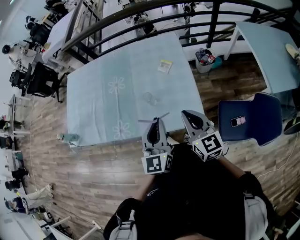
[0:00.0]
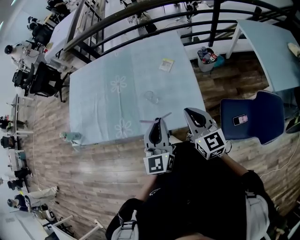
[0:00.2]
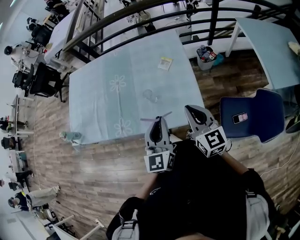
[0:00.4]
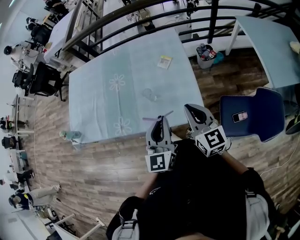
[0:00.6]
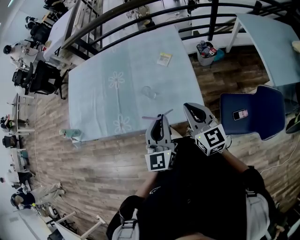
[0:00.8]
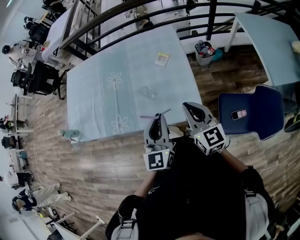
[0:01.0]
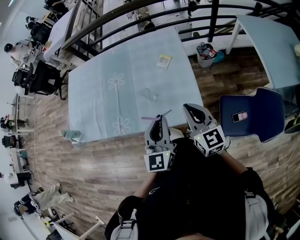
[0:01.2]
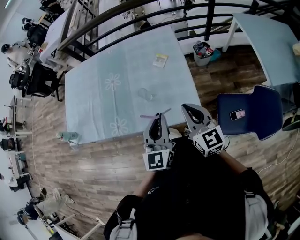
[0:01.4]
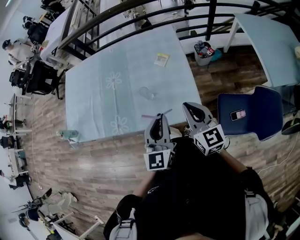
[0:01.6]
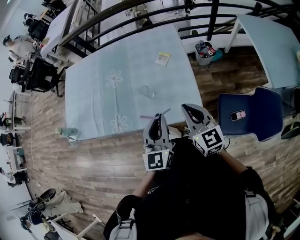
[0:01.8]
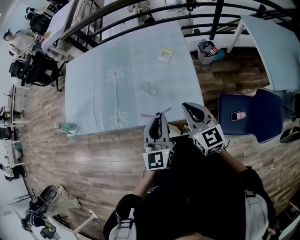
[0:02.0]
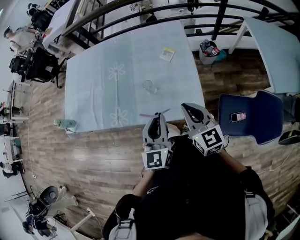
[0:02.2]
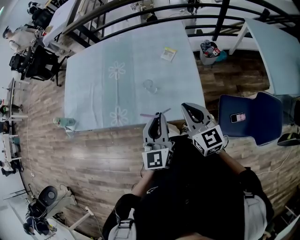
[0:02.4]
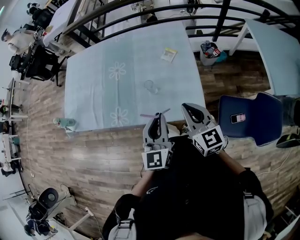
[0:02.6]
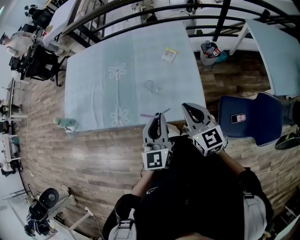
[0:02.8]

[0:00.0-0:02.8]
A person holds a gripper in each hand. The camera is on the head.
0:00.0 to 0:02.8: The grippers stay close to where they were, moving slightly.

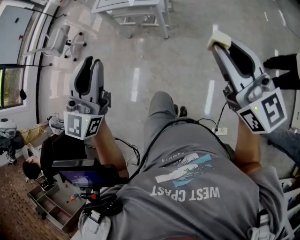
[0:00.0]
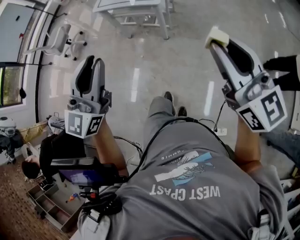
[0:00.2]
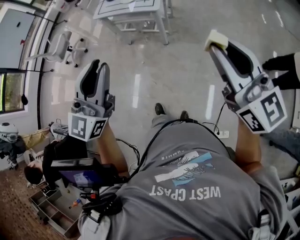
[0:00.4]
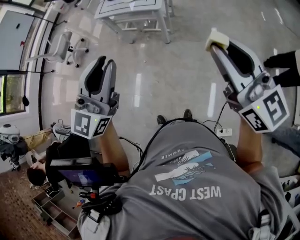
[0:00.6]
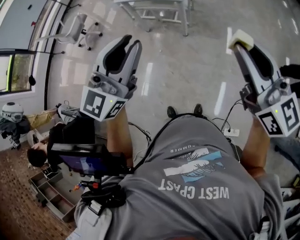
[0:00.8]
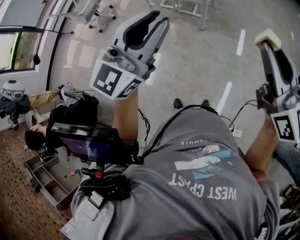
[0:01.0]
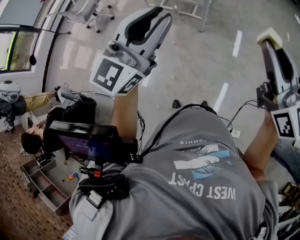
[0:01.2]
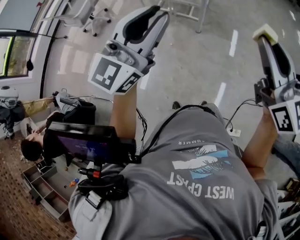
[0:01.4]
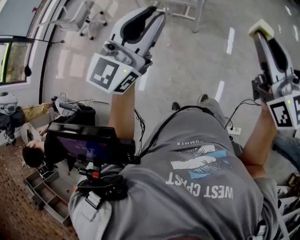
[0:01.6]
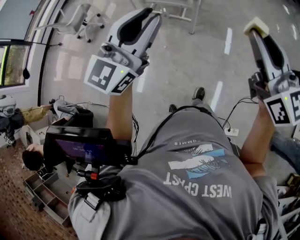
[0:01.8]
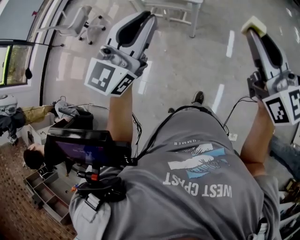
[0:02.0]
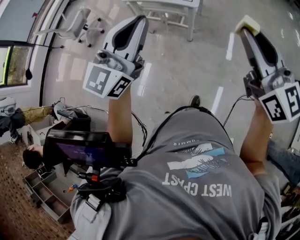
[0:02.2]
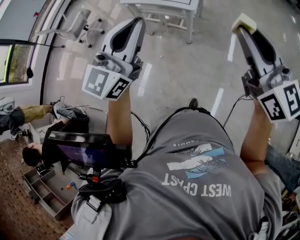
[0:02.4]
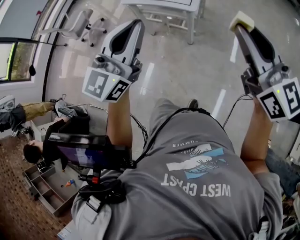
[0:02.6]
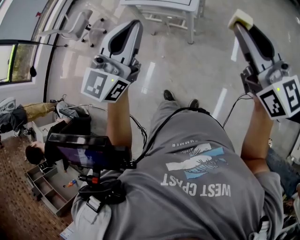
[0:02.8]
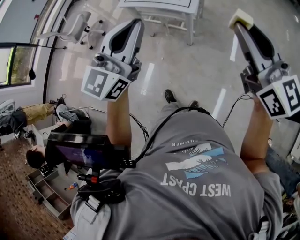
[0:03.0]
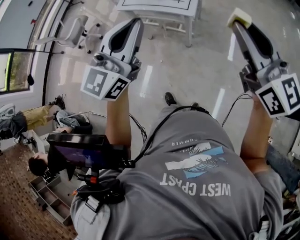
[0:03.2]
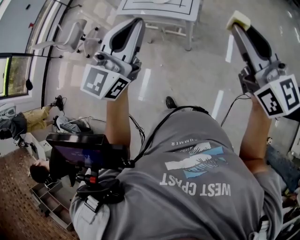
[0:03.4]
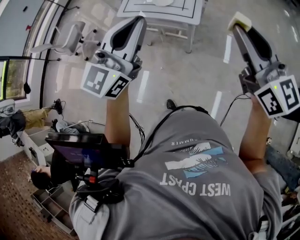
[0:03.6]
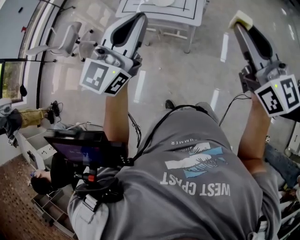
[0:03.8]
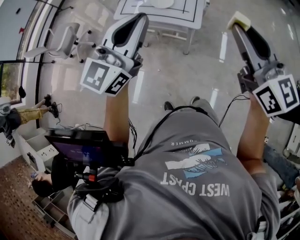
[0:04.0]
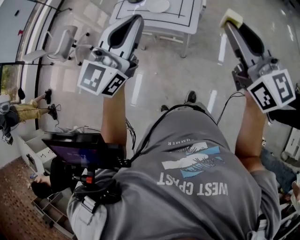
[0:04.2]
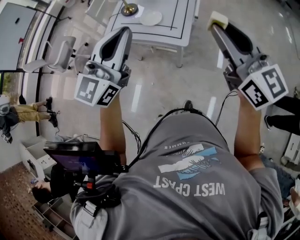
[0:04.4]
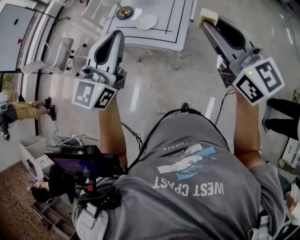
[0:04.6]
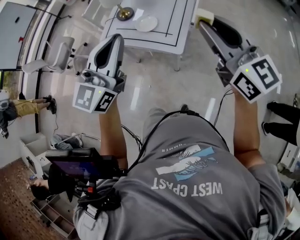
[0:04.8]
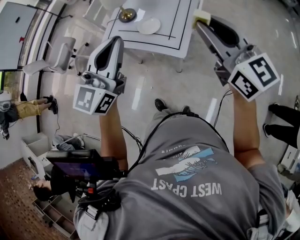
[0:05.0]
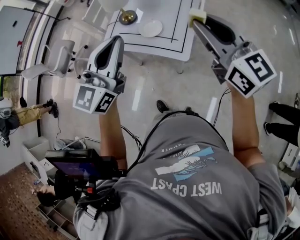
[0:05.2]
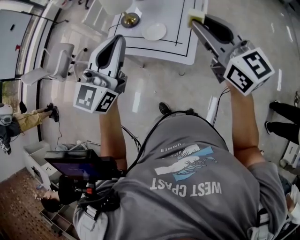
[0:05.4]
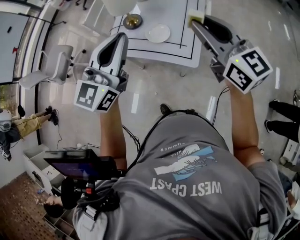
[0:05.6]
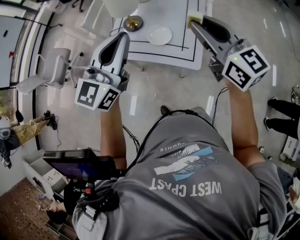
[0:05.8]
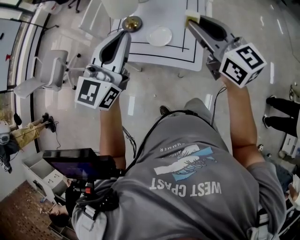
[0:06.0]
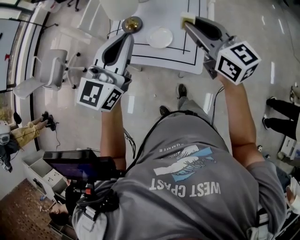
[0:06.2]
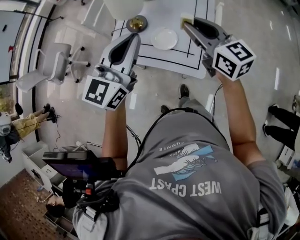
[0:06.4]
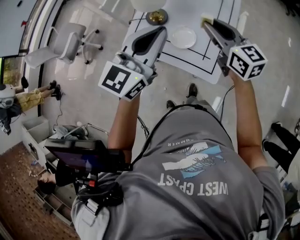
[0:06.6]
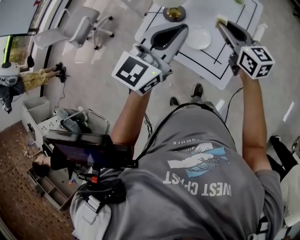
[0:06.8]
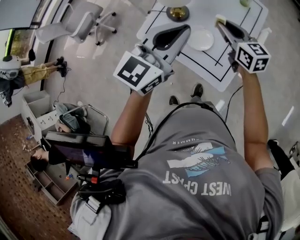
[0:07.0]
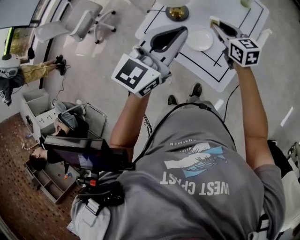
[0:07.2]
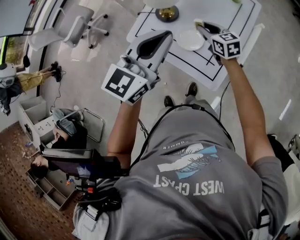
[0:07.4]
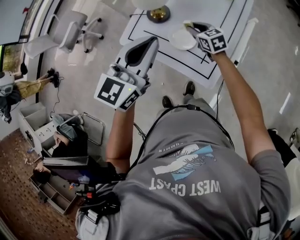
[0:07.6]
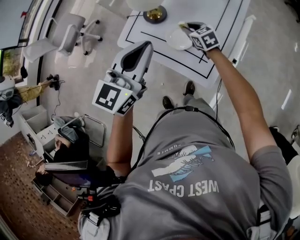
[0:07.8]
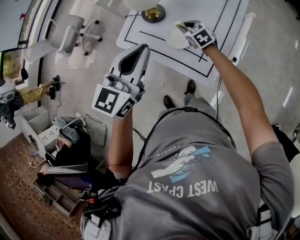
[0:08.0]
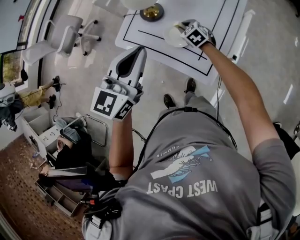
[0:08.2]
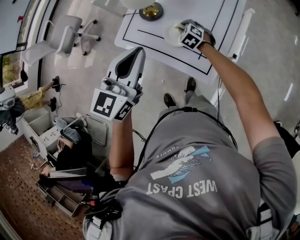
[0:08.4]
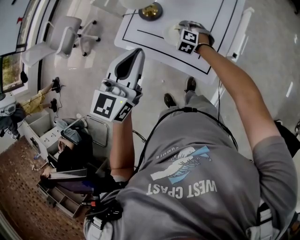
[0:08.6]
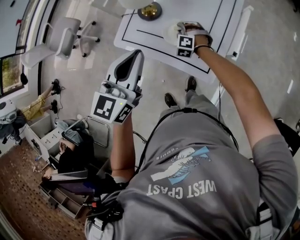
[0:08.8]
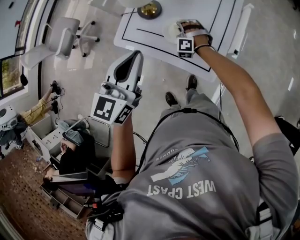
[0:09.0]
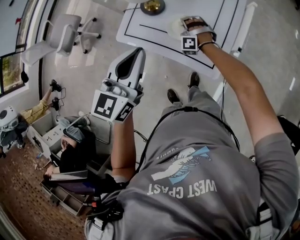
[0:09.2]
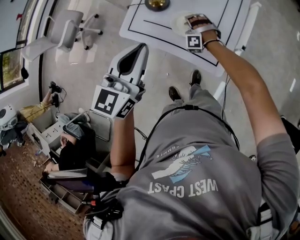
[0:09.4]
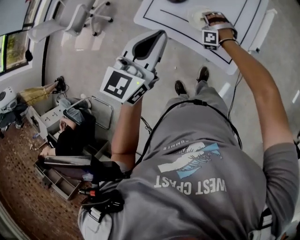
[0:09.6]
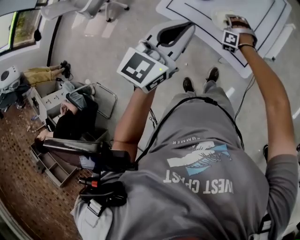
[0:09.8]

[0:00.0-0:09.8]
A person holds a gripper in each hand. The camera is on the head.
0:00.0 to 0:01.4: The left gripper goes about 10 cm to the left; the right gripper is displaced to the left by some 20 cm.
0:01.4 to 0:02.8: Both grippers travel together forward and to the right, roughly 20 cm.
0:02.8 to 0:04.2: The grippers both shift forward by roughly 20 cm.
0:04.2 to 0:05.6: The grippers both shift forward by about 25 cm.
0:05.6 to 0:07.0: The right gripper travels forward and downward by approximately 30 cm, and swivels some 20 degrees, while the left gripper moves forward and downward, about 15 cm.
0:07.0 to 0:08.4: The right gripper goes about 25 cm downward, and angles its fingers downward, by approximately 40 degrees. The left gripper moves downward, some 5 cm.
0:08.4 to 0:09.8: The right gripper rolls counterclockwise, seen from behind, by some 50 degrees; the left gripper shifts by some 5 cm.

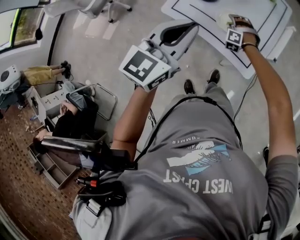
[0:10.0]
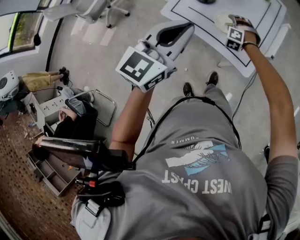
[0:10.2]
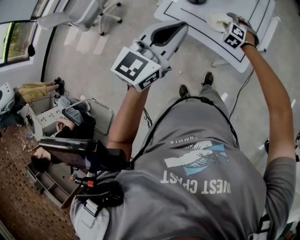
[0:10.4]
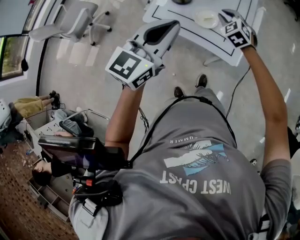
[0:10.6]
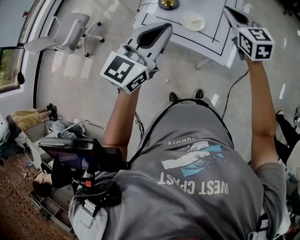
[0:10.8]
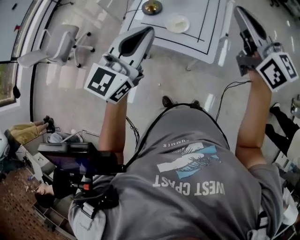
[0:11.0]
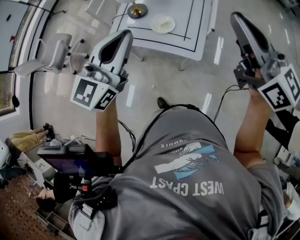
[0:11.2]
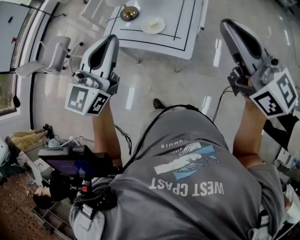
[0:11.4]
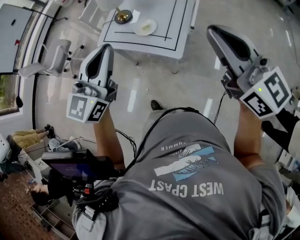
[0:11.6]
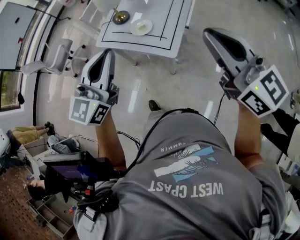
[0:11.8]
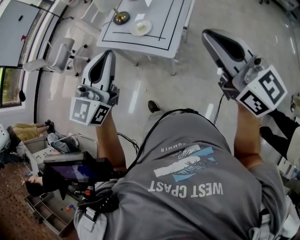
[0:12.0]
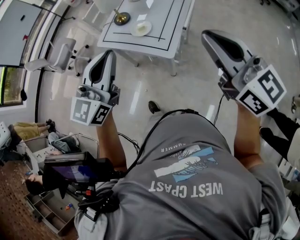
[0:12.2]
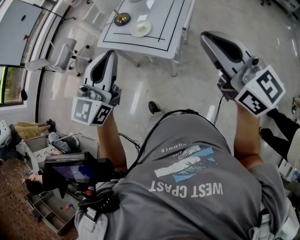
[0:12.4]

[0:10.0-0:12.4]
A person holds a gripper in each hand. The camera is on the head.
0:10.0 to 0:11.2: The left gripper shifts roughly 15 cm upward, backward and to the right. The right gripper heads upward and backward, covering some 60 cm, angles its fingers upward, by approximately 60 degrees, and closes up.
0:11.2 to 0:12.4: The grippers both shift backward and to the right by some 20 cm.

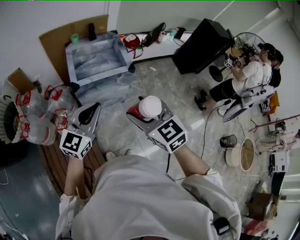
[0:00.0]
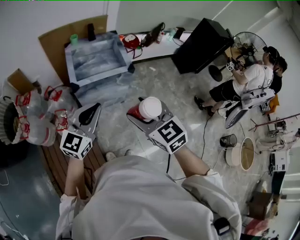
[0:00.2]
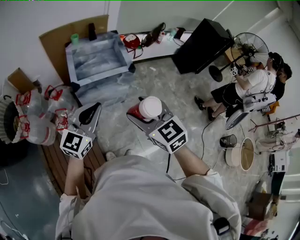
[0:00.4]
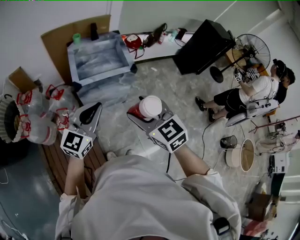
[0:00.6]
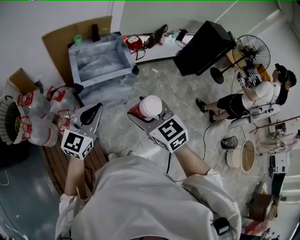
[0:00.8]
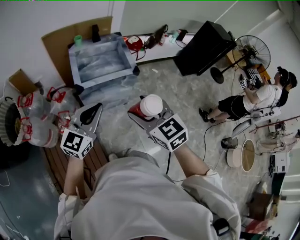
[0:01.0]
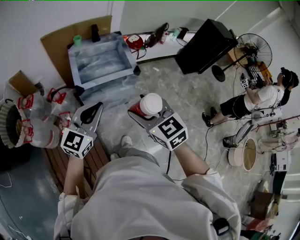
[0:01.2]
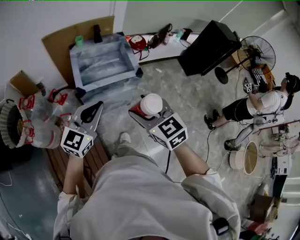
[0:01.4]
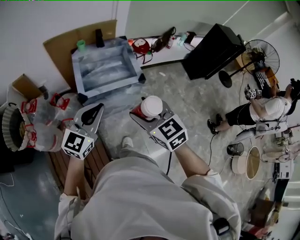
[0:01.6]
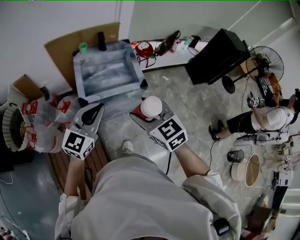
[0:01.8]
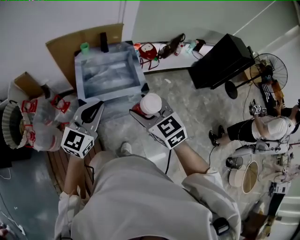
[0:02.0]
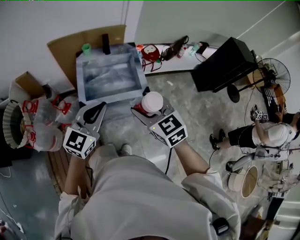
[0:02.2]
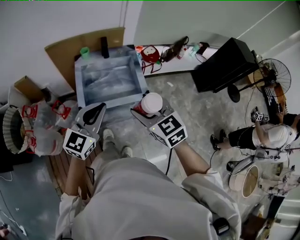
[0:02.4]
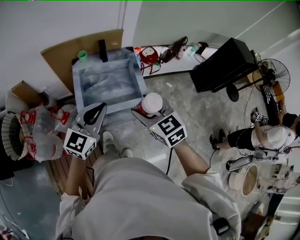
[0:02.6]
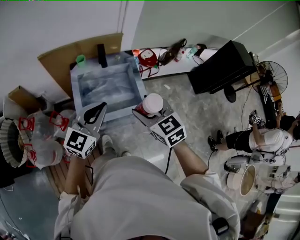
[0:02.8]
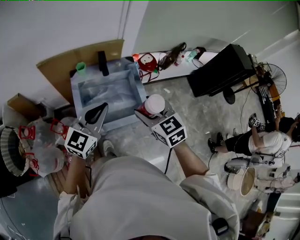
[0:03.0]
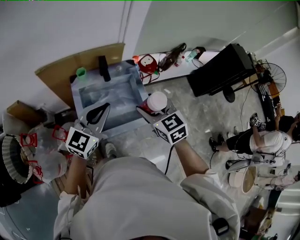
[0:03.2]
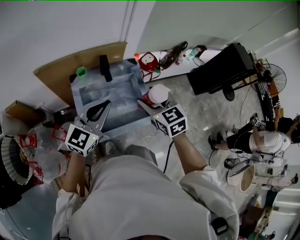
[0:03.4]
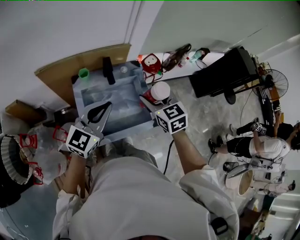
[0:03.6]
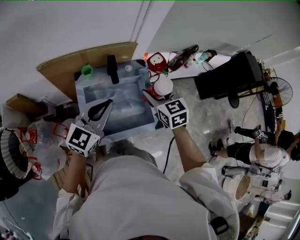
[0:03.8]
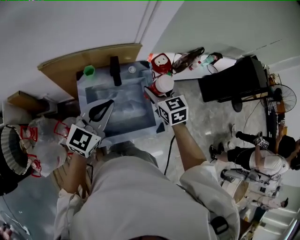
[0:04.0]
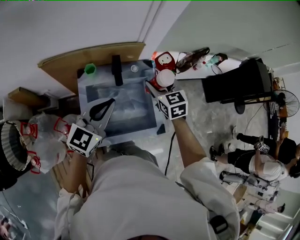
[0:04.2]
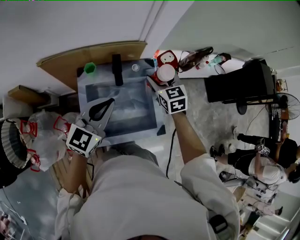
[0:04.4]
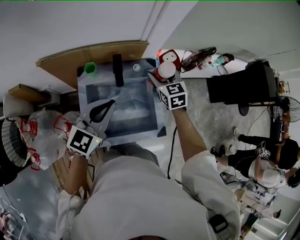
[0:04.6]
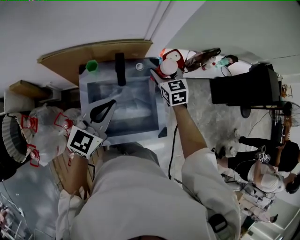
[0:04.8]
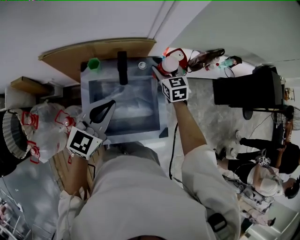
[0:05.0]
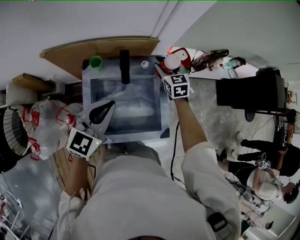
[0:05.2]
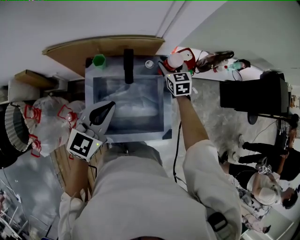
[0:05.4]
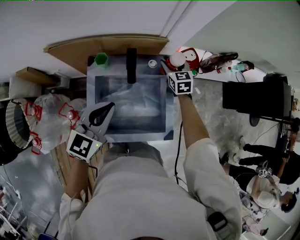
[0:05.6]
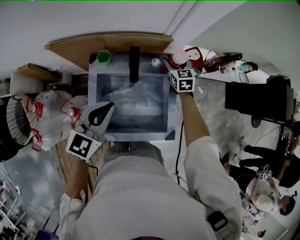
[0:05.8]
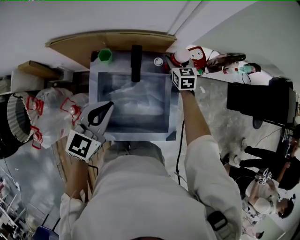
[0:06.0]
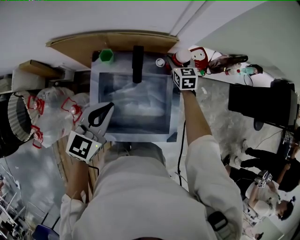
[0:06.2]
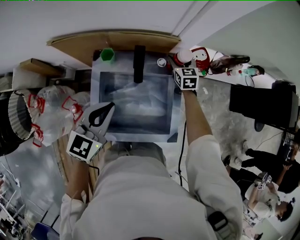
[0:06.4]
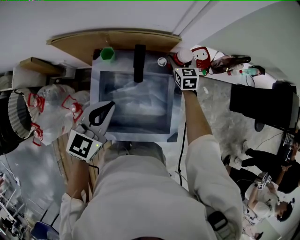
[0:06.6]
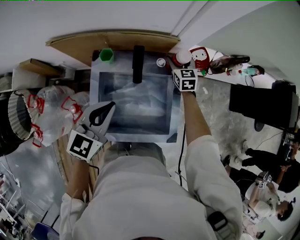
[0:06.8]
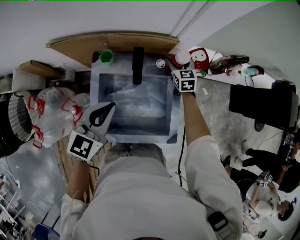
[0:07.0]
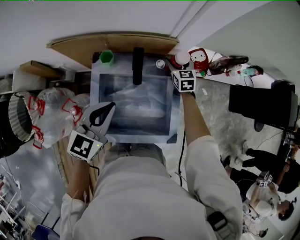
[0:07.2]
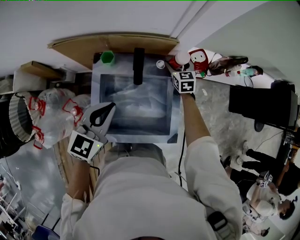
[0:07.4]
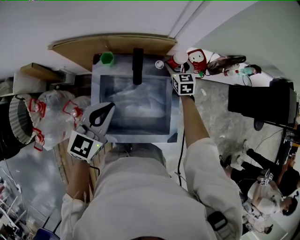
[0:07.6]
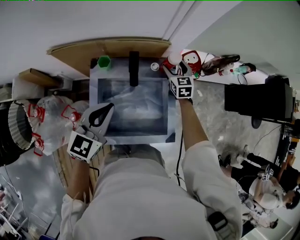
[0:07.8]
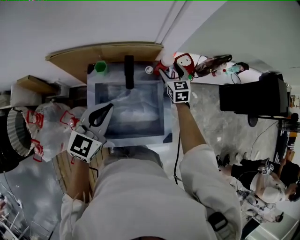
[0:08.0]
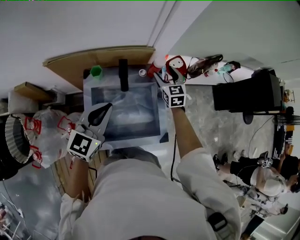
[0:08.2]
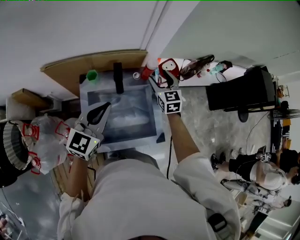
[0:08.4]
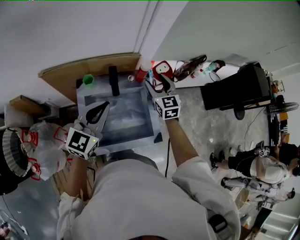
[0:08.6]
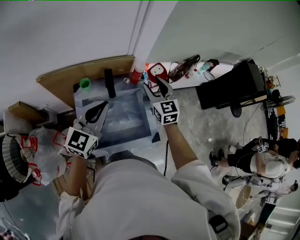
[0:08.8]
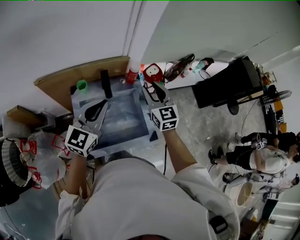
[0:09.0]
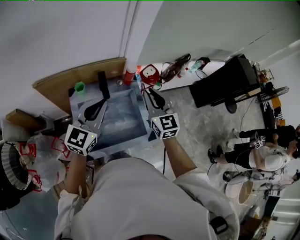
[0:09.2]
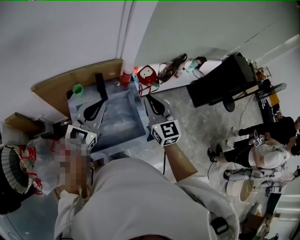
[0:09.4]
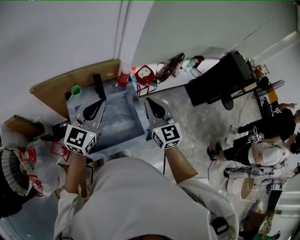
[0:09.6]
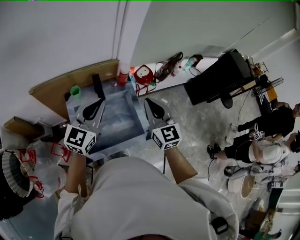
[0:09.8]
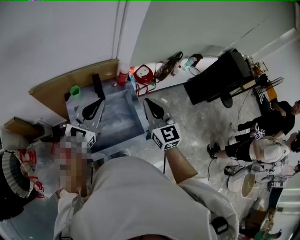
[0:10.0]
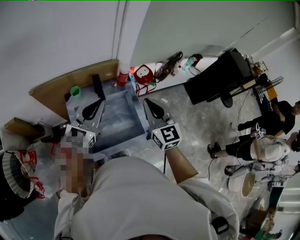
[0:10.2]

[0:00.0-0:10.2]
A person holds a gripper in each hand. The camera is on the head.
0:00.0 to 0:01.4: Both grippers move forward, roughly 5 cm.
0:01.4 to 0:03.0: The two grippers go about 35 cm forward.
0:03.0 to 0:04.4: The right gripper heads forward, covering some 30 cm. Meanwhile the left gripper goes some 15 cm forward.
0:04.4 to 0:05.8: The left gripper shifts about 5 cm downward. The right gripper is displaced downward and forward by some 20 cm.
0:05.8 to 0:07.2: There are only small adjustments of the grippers.
0:07.2 to 0:08.8: The left gripper travels upward by some 10 cm, and swivels roughly 20 degrees; the right gripper heads upward and backward, covering roughly 30 cm, and changes its angle by some 20 degrees.
0:08.8 to 0:10.2: The right gripper heads backward and upward, covering about 15 cm, and closes up.
